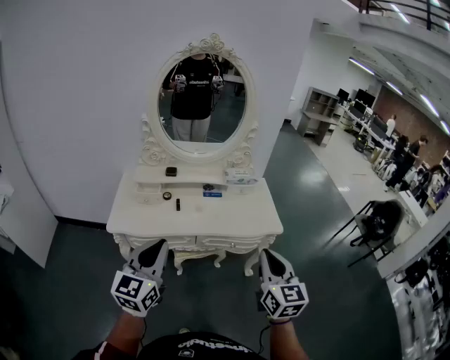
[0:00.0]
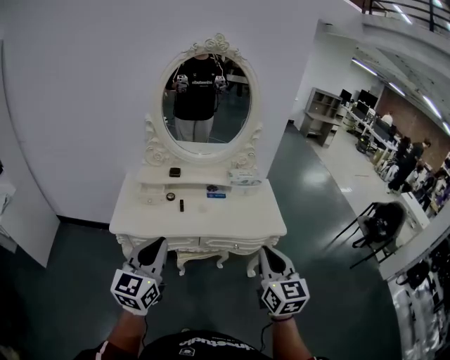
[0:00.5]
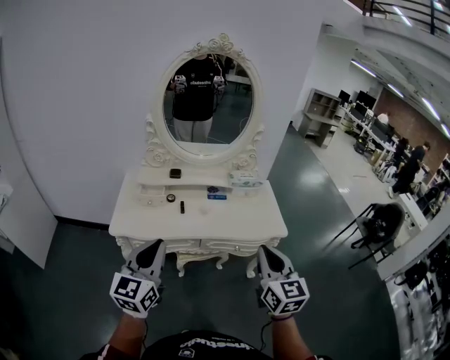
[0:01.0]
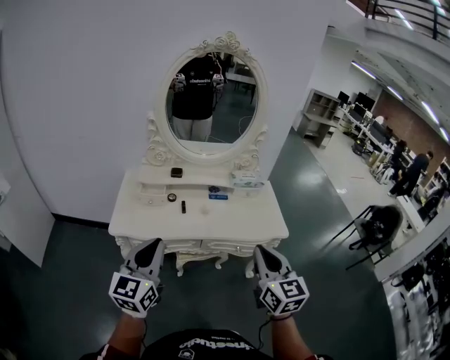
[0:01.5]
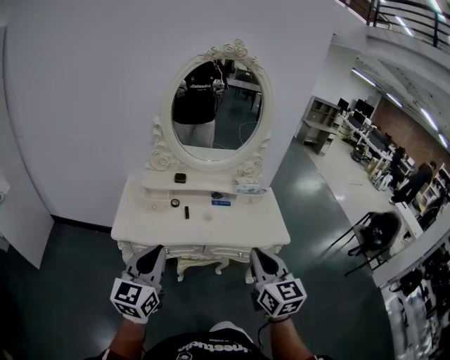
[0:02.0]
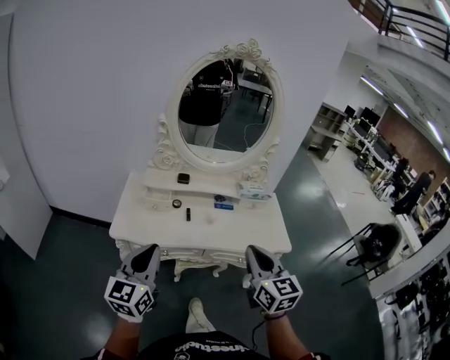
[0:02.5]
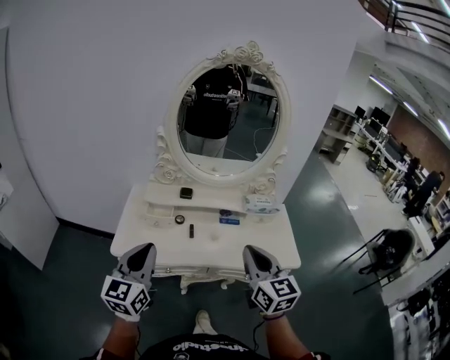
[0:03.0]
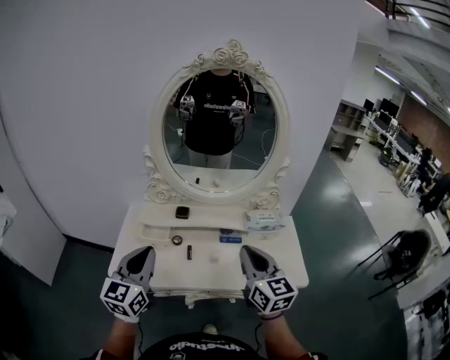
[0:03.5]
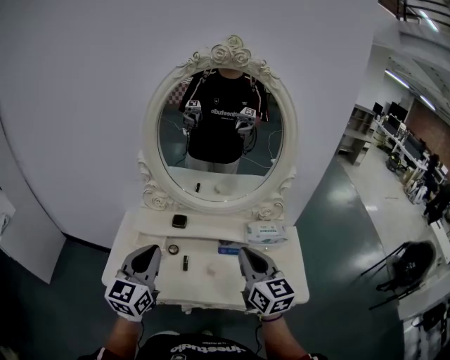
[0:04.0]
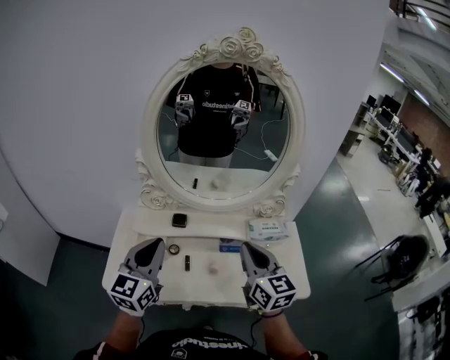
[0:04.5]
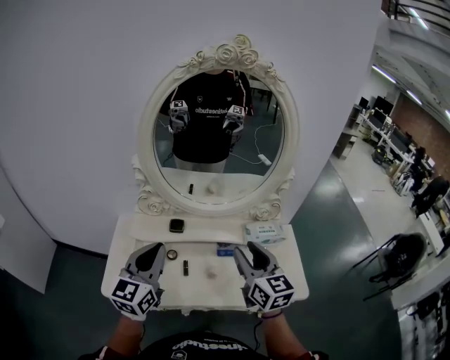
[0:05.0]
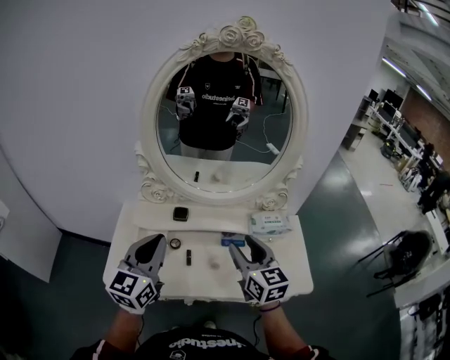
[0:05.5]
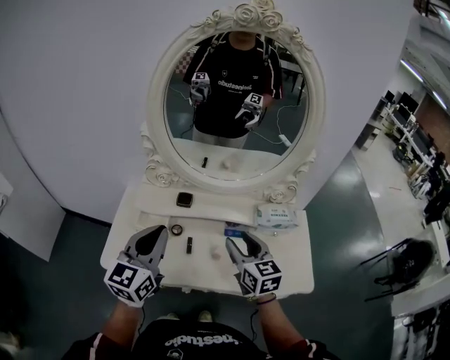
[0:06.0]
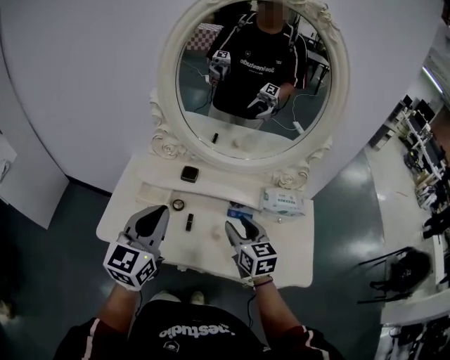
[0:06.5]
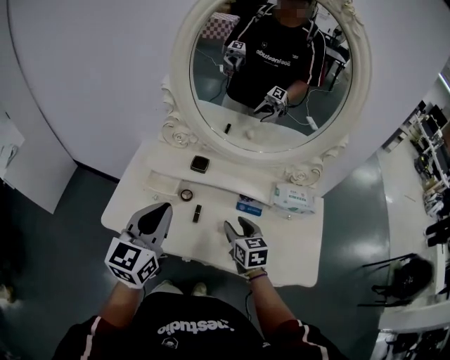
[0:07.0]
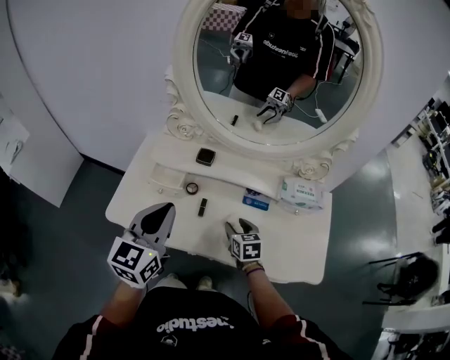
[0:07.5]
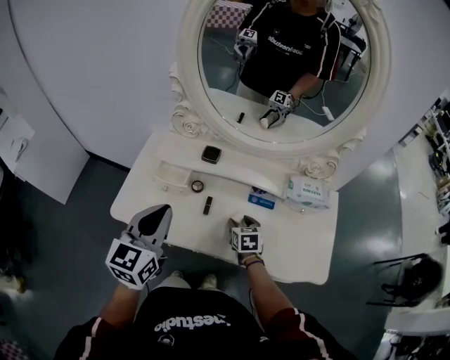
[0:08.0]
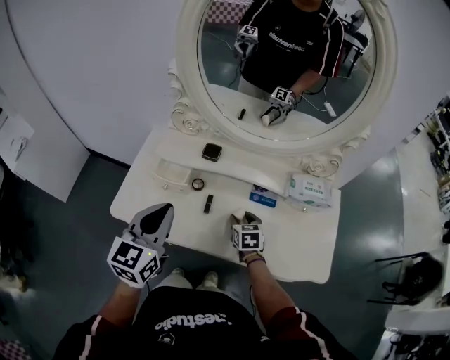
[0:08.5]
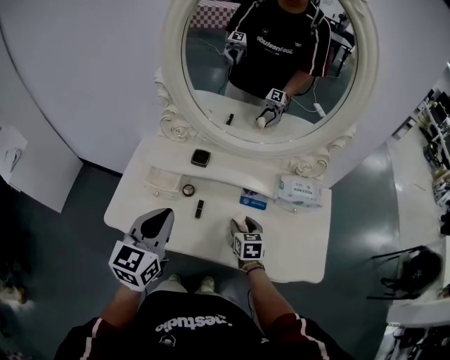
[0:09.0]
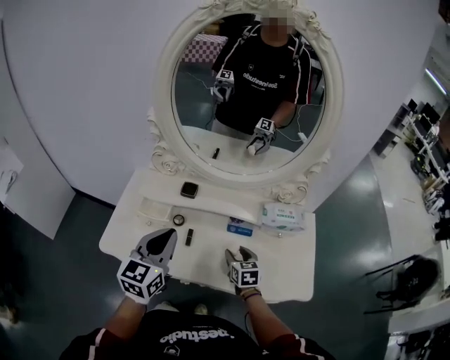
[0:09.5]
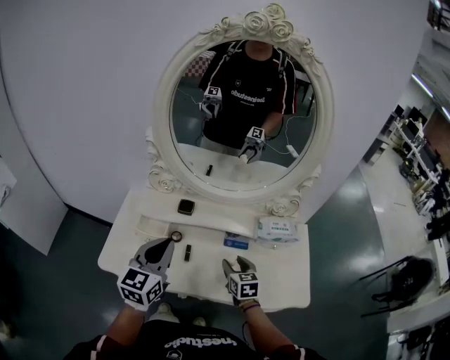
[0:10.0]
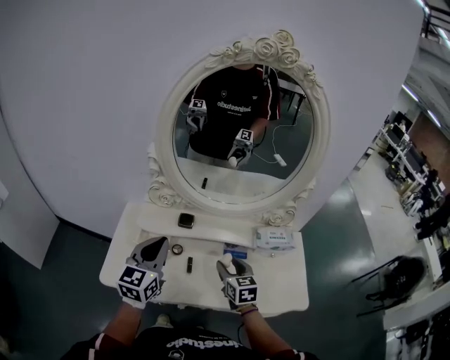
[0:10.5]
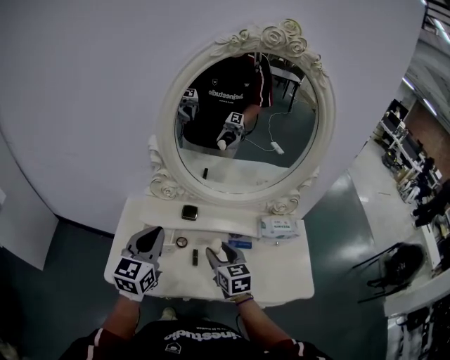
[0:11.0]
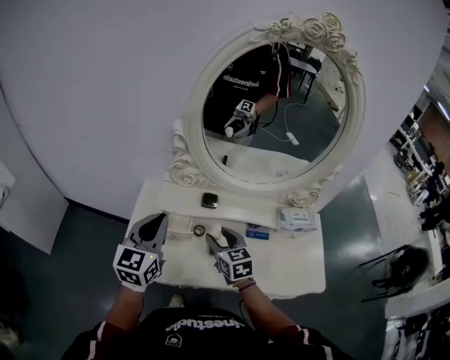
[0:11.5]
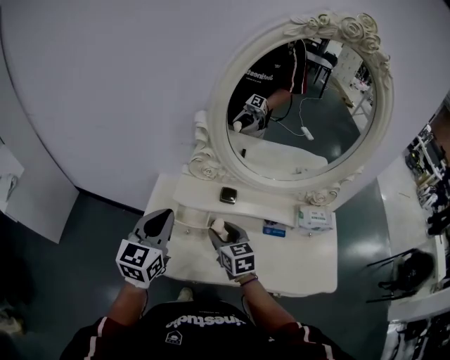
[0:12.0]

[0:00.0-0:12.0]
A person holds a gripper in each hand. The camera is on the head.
0:00.0 to 0:02.0: The two grippers go some 10 cm to the left.
0:02.0 to 0:04.0: The two grippers go approximately 30 cm forward.
0:04.0 to 0:06.0: The right gripper is displaced downward by about 10 cm, and opens.
0:06.0 to 0:08.0: The right gripper moves downward, approximately 30 cm, and swivels some 30 degrees. Meanwhile the left gripper shifts about 10 cm downward.
0:08.0 to 0:10.0: The left gripper changes place by roughly 5 cm, while the right gripper travels upward by roughly 10 cm.
0:10.0 to 0:12.0: Both grippers travel together to the left, some 20 cm.

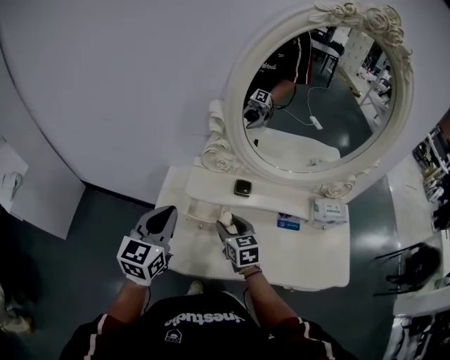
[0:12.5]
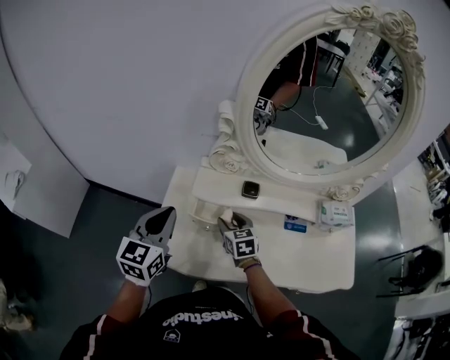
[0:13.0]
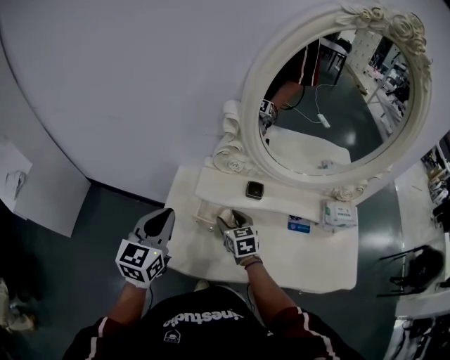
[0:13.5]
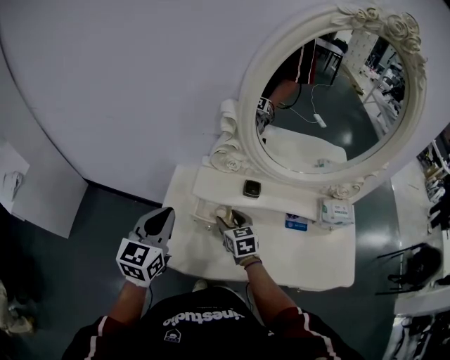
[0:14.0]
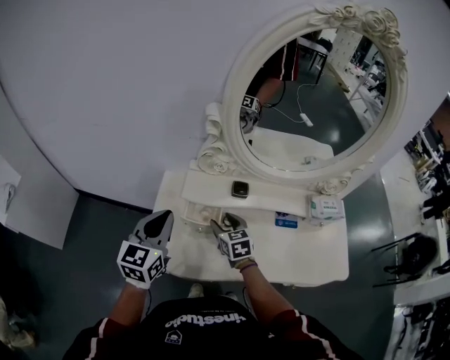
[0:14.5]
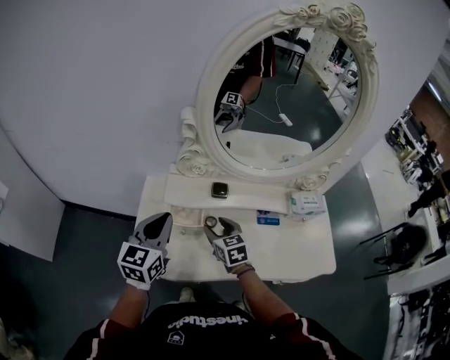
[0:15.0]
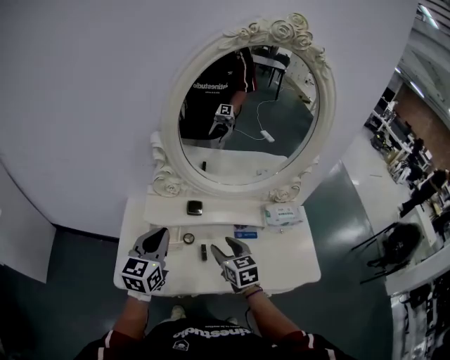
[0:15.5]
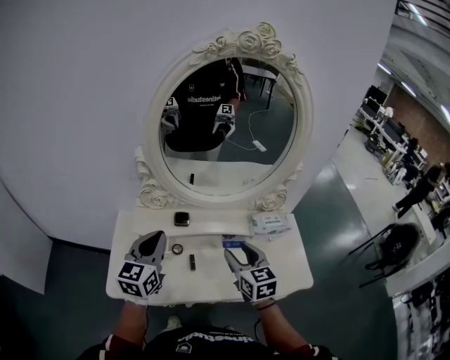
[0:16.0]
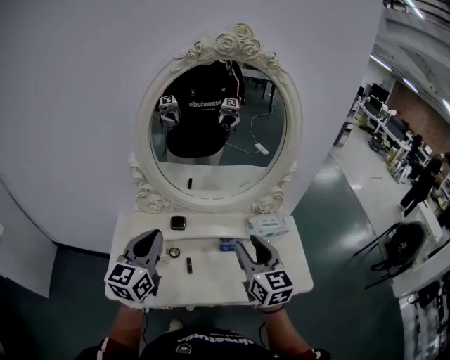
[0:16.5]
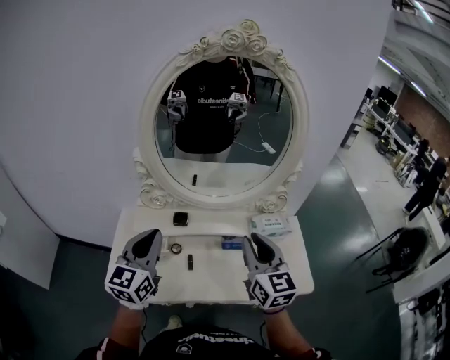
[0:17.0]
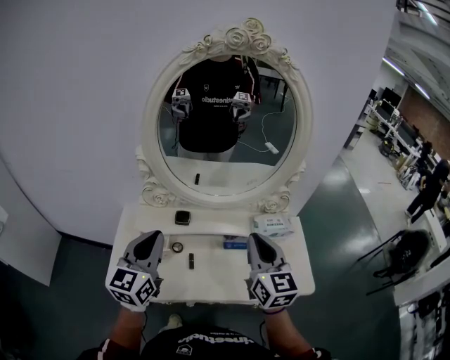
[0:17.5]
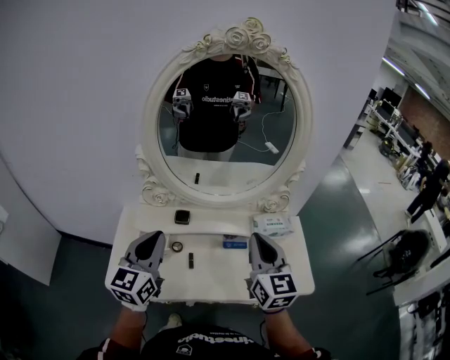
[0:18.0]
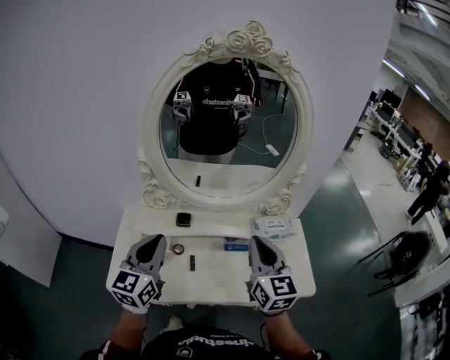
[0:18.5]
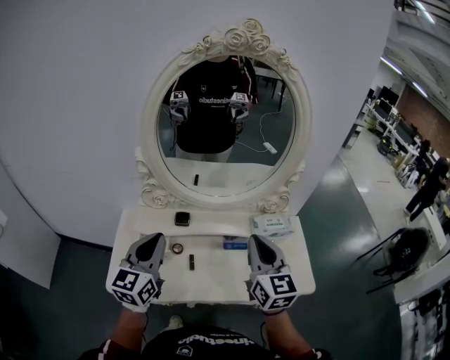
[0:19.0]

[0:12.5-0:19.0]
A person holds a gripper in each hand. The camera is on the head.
0:14.5 to 0:17.0: The left gripper goes roughly 20 cm to the right and upward. The right gripper travels upward and to the right by approximately 40 cm, tilts its fingers some 30 degrees upward, and closes its fingers.
0:17.0 to 0:19.0: The grippers stay close to where they were, moving slightly.

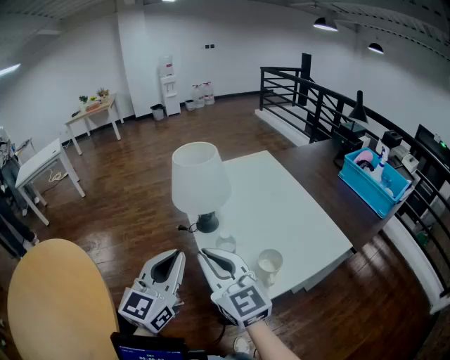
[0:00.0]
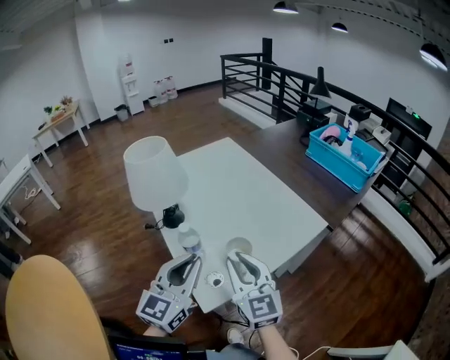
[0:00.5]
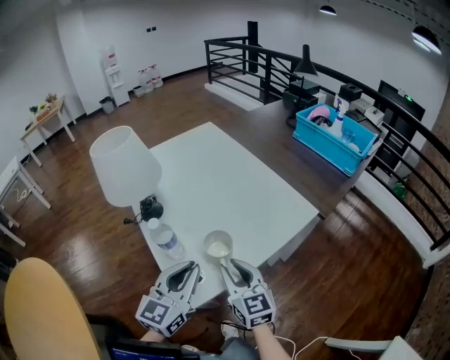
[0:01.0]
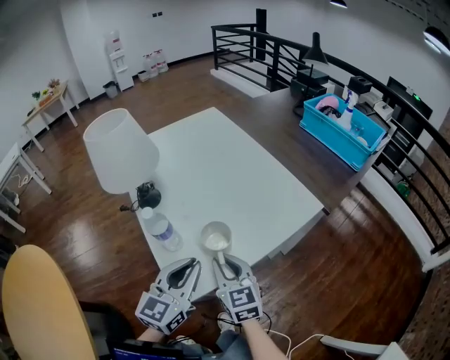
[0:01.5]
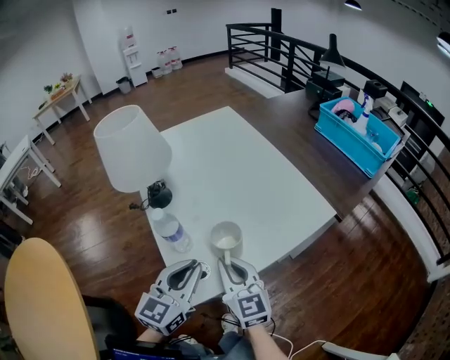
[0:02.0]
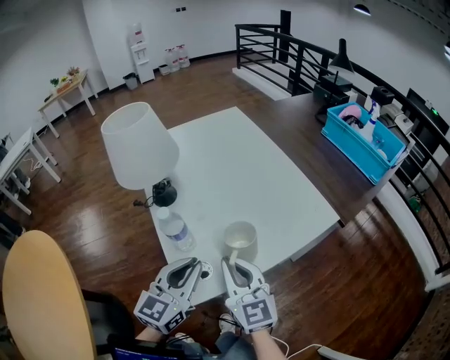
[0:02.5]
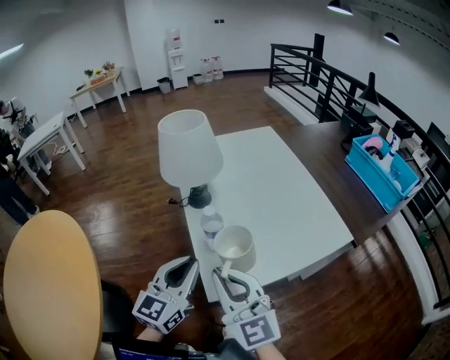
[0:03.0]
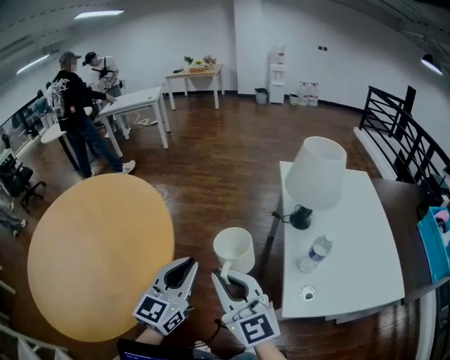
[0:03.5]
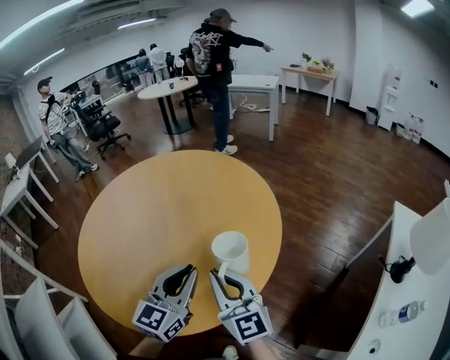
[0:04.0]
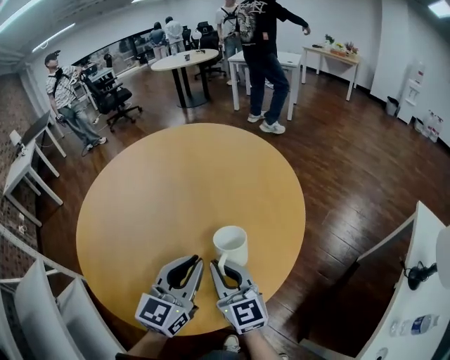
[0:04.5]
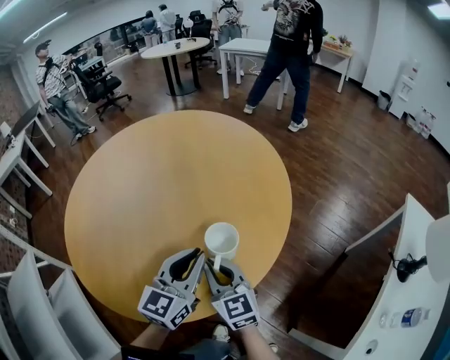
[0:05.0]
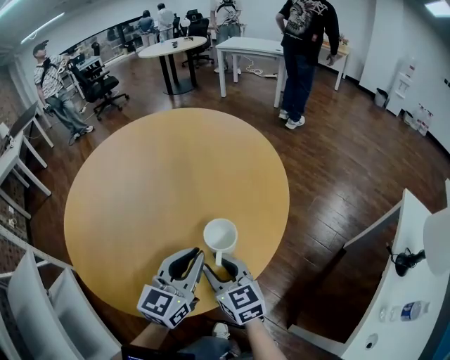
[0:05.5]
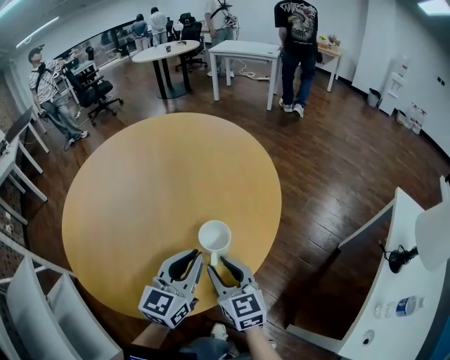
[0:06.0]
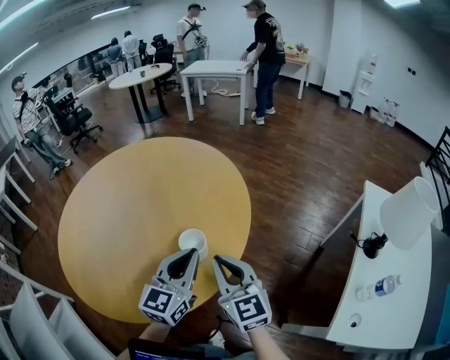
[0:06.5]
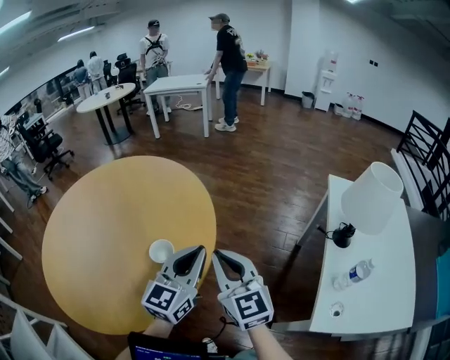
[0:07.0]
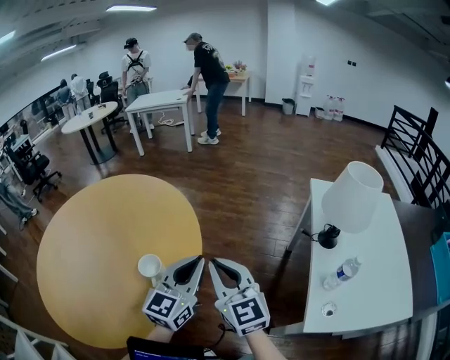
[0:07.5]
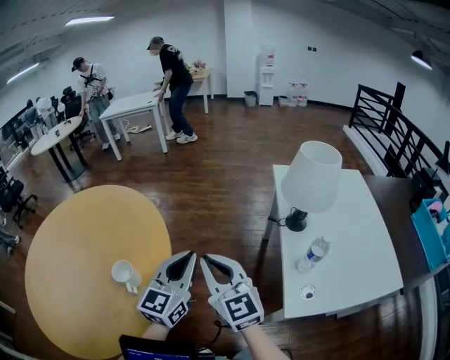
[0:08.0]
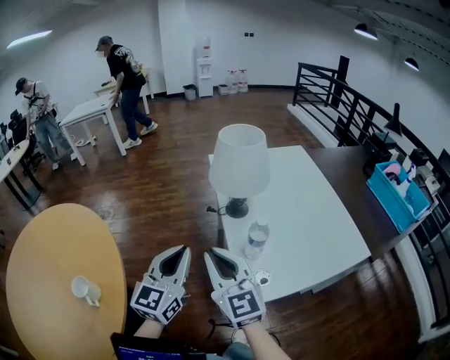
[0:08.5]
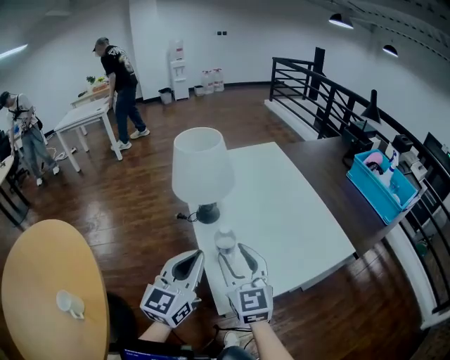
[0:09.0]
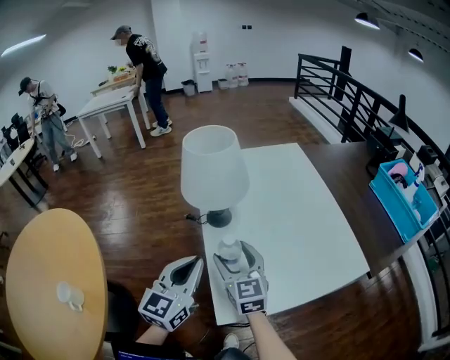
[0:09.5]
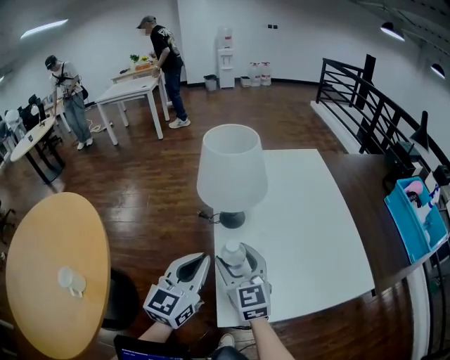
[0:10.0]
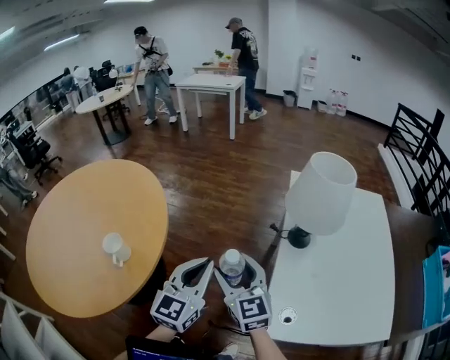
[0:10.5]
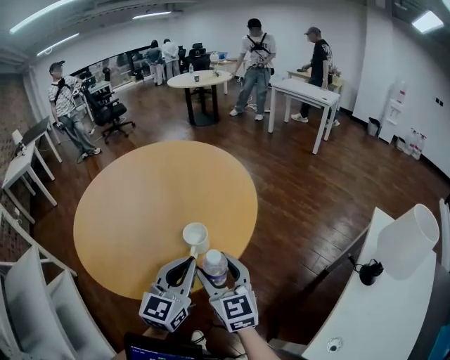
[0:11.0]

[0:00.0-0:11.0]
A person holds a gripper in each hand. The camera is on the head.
0:00.0 to 0:02.0: Both grippers travel together downward and to the right, approximately 25 cm. The right gripper rotates some 20 degrees.
0:02.0 to 0:03.5: The right gripper moves roughly 40 cm, and rotates approximately 50 degrees; the left gripper shifts by approximately 40 cm, and rotates approximately 40 degrees.
0:03.5 to 0:05.5: The right gripper ends up some 40 cm from where it was, turns by roughly 40 degrees, and opens. The left gripper shifts by roughly 35 cm, and turns by approximately 30 degrees.
0:05.5 to 0:07.5: The right gripper shifts by about 30 cm, changes its angle by about 40 degrees, and closes its fingers; the left gripper moves approximately 25 cm, and turns by approximately 30 degrees.
0:07.5 to 0:09.0: The left gripper moves some 35 cm, and swivels about 30 degrees. Meanwhile the right gripper changes place by some 40 cm, rotates roughly 50 degrees, and opens.
0:09.0 to 0:11.0: Both grippers are carried roughly 50 cm. The left gripper turns by approximately 60 degrees. The right gripper turns by some 70 degrees.
